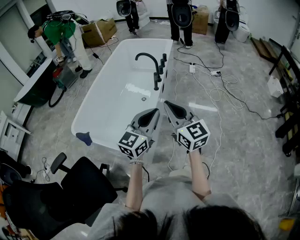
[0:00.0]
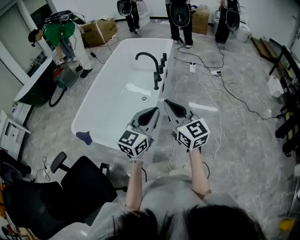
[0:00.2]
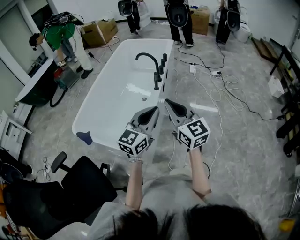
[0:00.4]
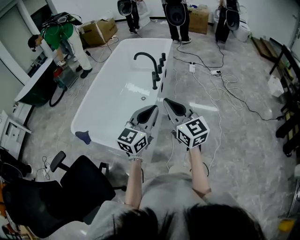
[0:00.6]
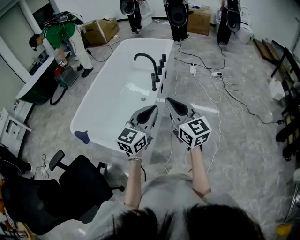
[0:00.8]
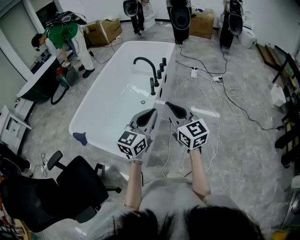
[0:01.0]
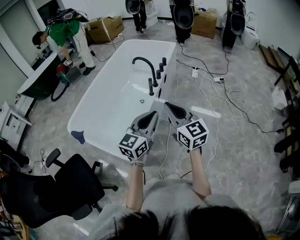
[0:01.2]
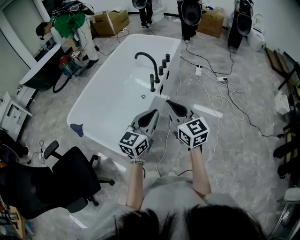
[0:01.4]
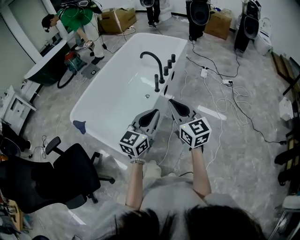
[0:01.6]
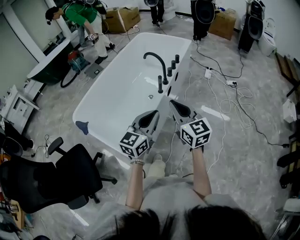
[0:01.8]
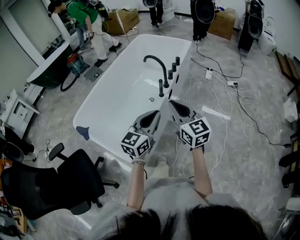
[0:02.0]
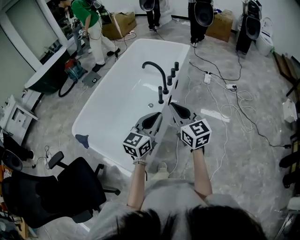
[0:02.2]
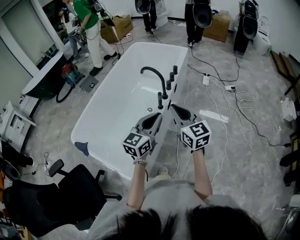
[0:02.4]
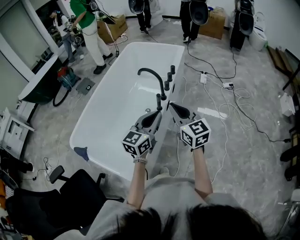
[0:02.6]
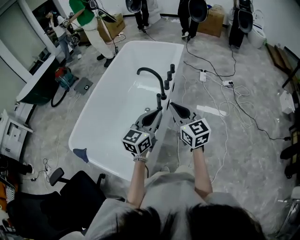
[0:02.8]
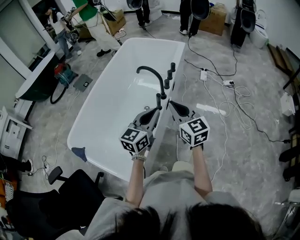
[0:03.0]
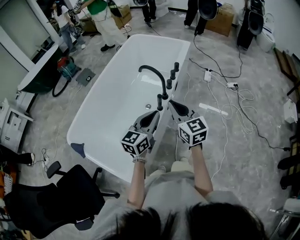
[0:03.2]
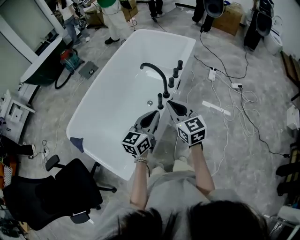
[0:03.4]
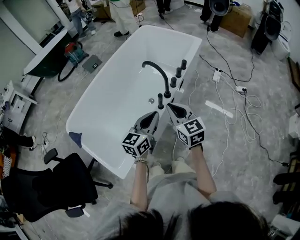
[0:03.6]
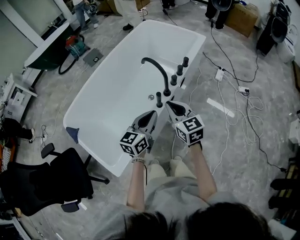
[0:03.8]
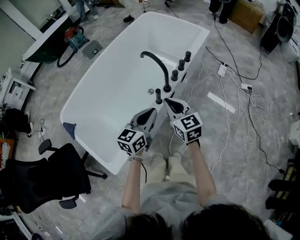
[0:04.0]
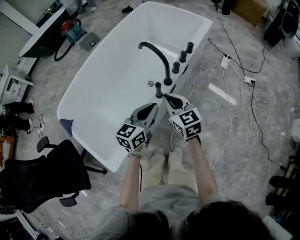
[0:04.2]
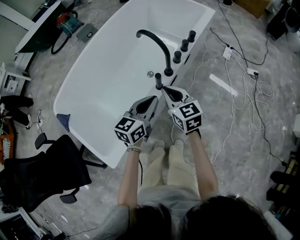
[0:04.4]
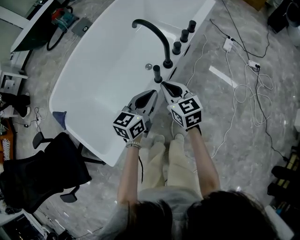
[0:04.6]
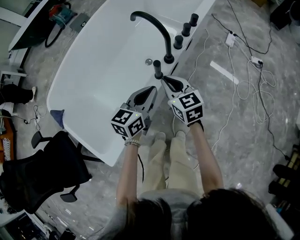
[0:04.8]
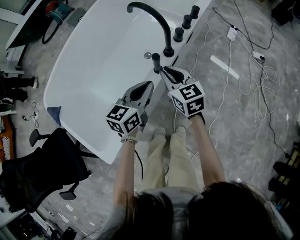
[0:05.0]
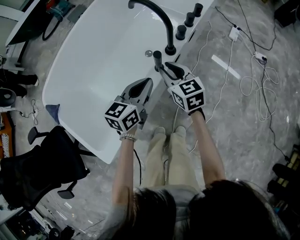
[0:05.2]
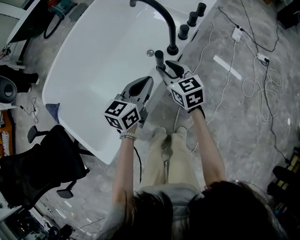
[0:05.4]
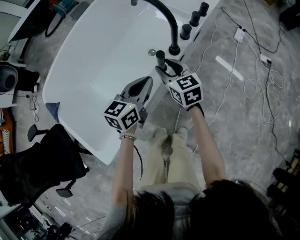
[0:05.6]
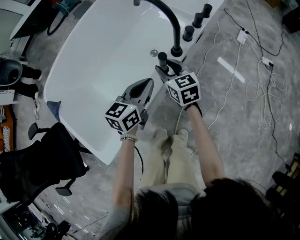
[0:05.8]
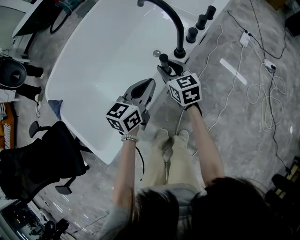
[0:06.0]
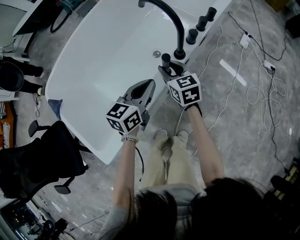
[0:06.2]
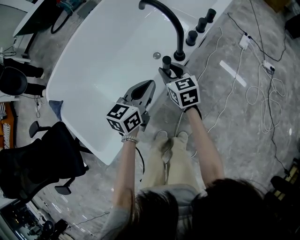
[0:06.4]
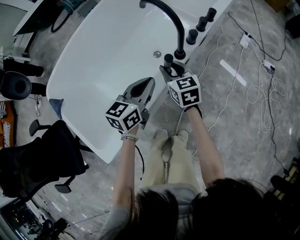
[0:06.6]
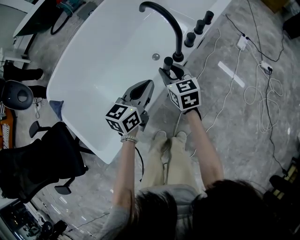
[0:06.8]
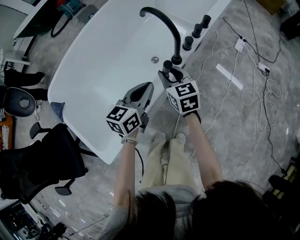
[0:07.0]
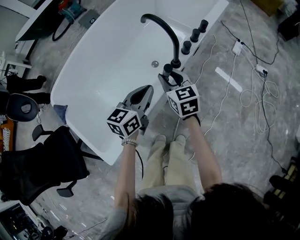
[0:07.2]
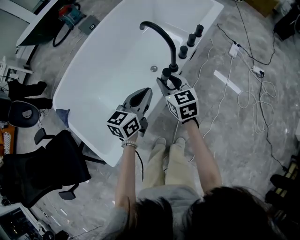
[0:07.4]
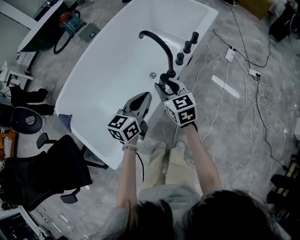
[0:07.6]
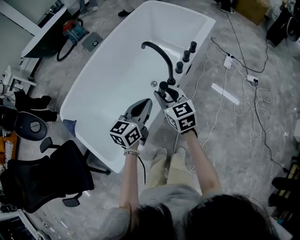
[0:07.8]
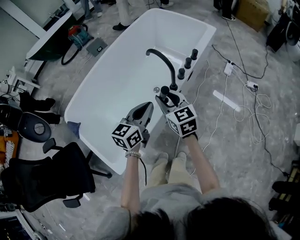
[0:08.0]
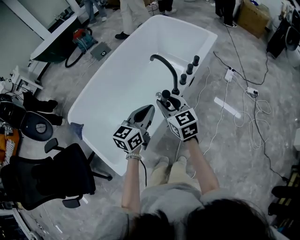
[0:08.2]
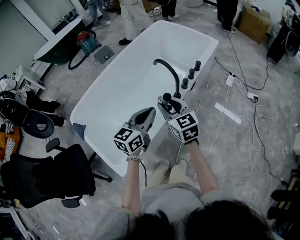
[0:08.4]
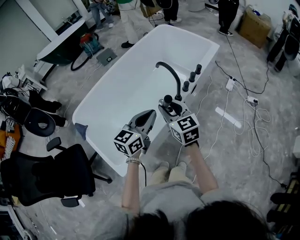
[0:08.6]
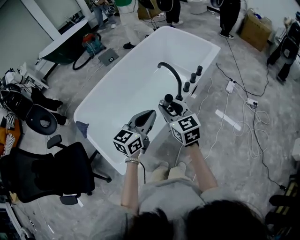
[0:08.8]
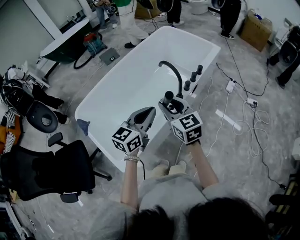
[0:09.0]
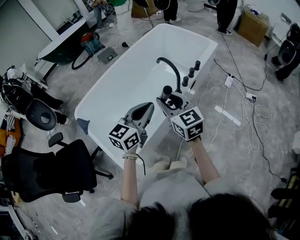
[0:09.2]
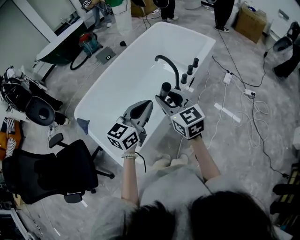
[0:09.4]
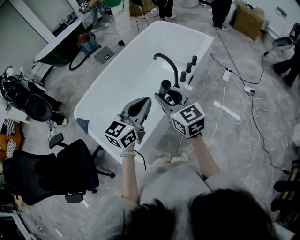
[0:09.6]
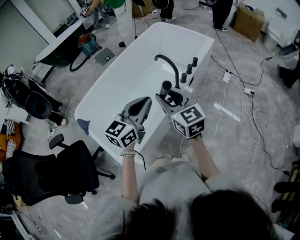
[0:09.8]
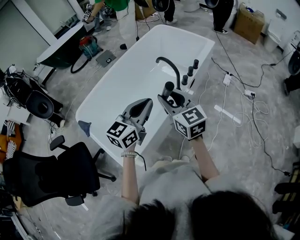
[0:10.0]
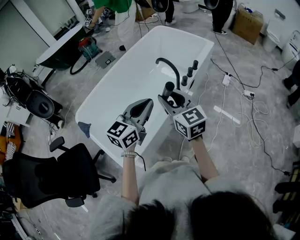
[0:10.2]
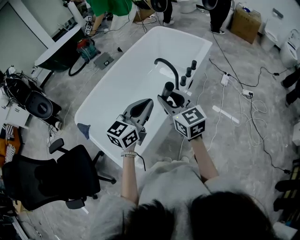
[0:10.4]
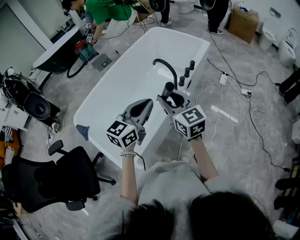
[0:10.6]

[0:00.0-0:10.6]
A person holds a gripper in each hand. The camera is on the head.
0:00.0 to 0:01.6: The grippers both shift to the right and forward by approximately 10 cm.
0:01.6 to 0:03.0: Both grippers move forward, roughly 20 cm.
0:03.0 to 0:04.6: Both grippers travel together downward and forward, some 25 cm. The left gripper rotates approximately 20 degrees; the right gripper swivels about 20 degrees.
0:04.6 to 0:06.0: The left gripper is displaced downward by about 5 cm. Meanwhile the right gripper is displaced downward and forward by approximately 15 cm, and opens its fingers.
0:06.0 to 0:07.6: Both grippers move upward, about 15 cm.
0:07.6 to 0:09.0: The grippers both shift upward and backward by about 20 cm.
0:09.0 to 0:10.6: The grippers make only small movements.

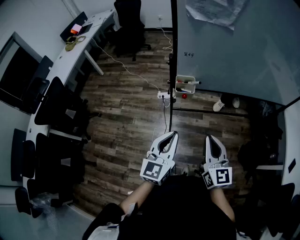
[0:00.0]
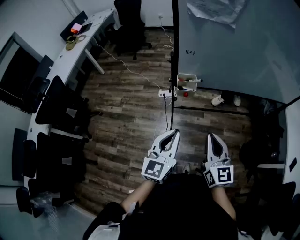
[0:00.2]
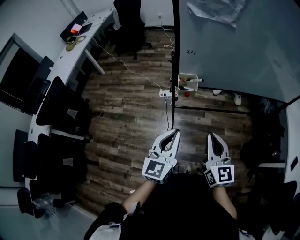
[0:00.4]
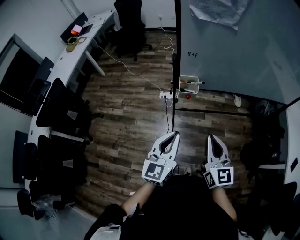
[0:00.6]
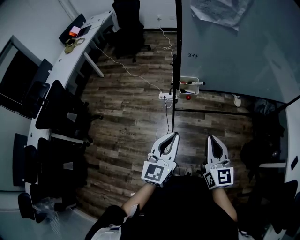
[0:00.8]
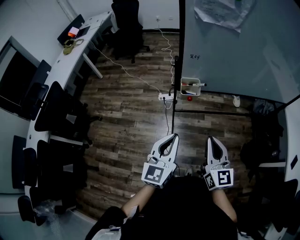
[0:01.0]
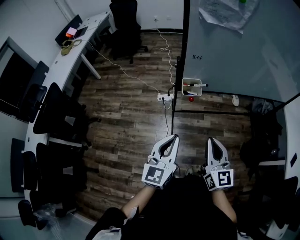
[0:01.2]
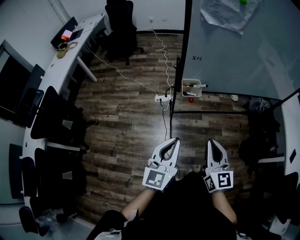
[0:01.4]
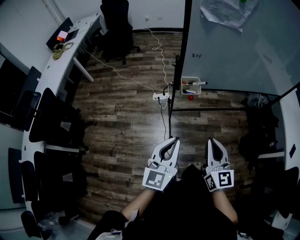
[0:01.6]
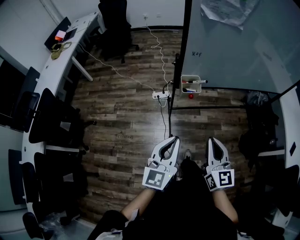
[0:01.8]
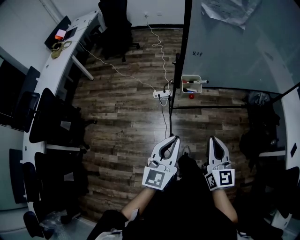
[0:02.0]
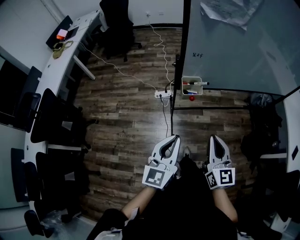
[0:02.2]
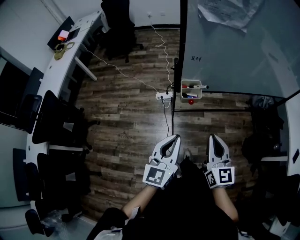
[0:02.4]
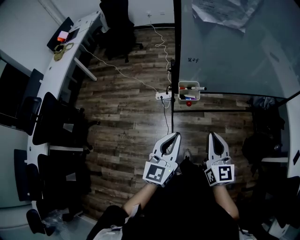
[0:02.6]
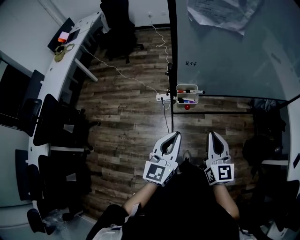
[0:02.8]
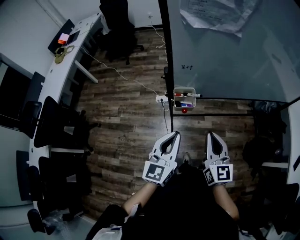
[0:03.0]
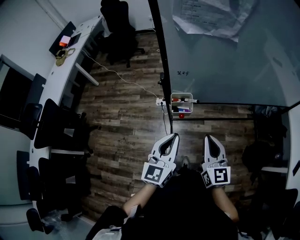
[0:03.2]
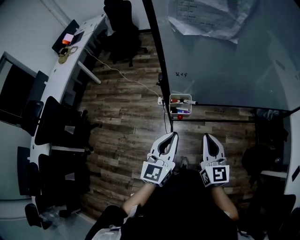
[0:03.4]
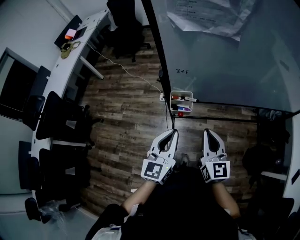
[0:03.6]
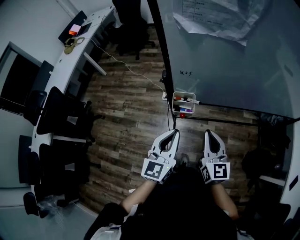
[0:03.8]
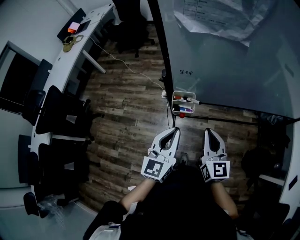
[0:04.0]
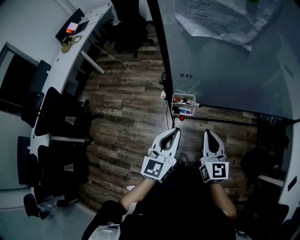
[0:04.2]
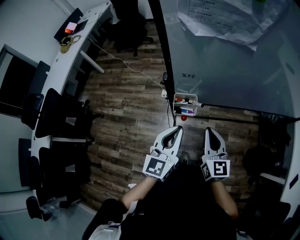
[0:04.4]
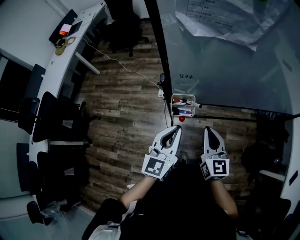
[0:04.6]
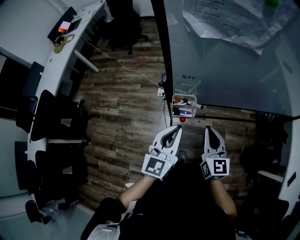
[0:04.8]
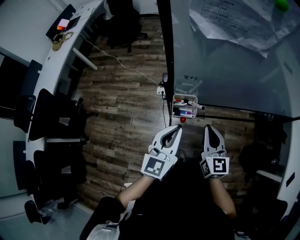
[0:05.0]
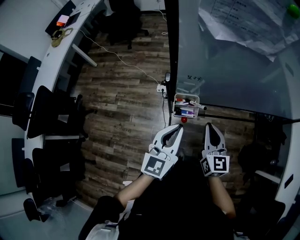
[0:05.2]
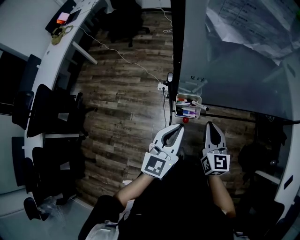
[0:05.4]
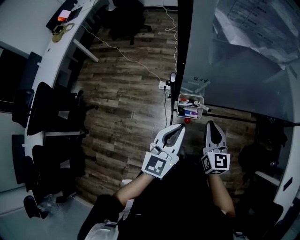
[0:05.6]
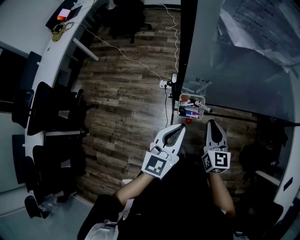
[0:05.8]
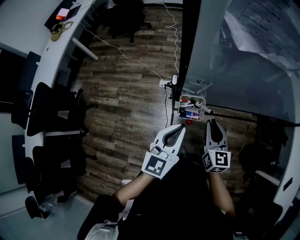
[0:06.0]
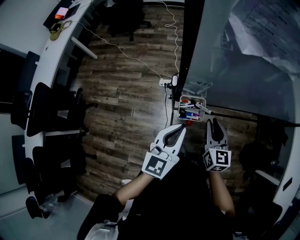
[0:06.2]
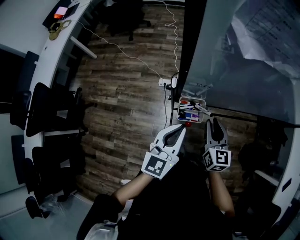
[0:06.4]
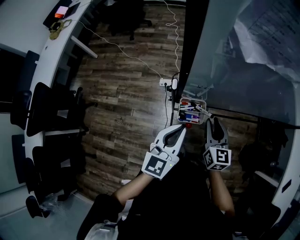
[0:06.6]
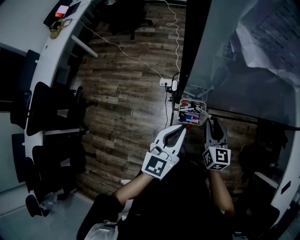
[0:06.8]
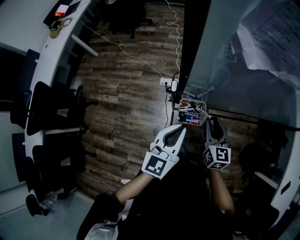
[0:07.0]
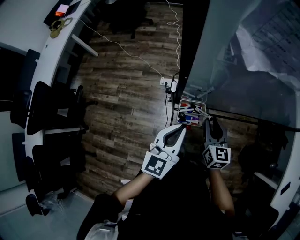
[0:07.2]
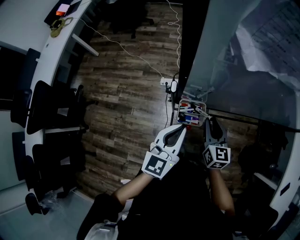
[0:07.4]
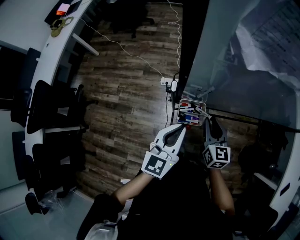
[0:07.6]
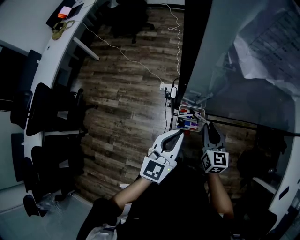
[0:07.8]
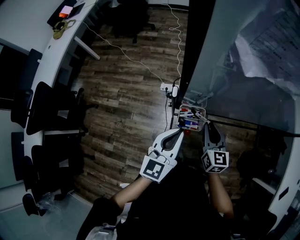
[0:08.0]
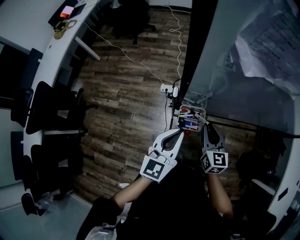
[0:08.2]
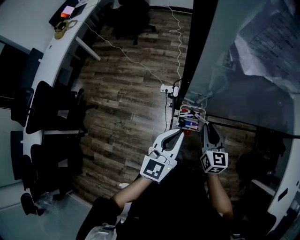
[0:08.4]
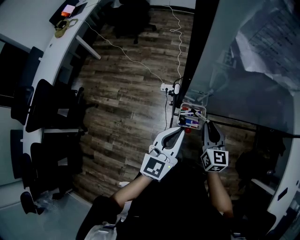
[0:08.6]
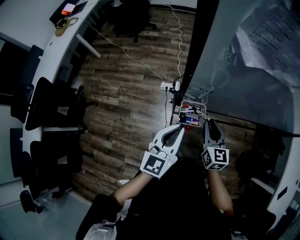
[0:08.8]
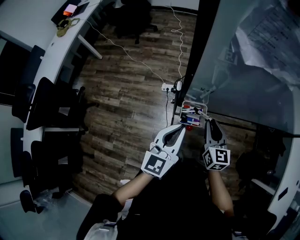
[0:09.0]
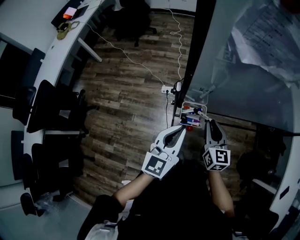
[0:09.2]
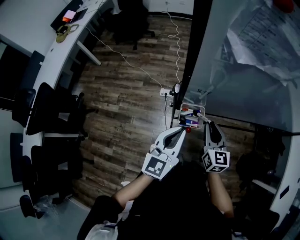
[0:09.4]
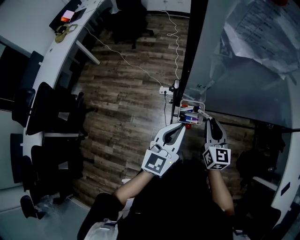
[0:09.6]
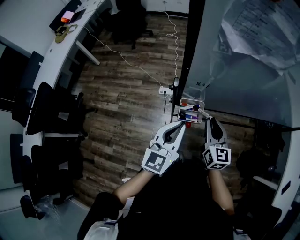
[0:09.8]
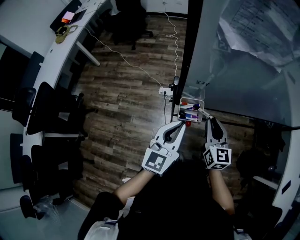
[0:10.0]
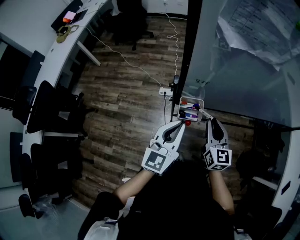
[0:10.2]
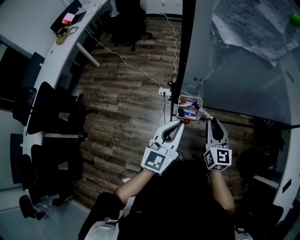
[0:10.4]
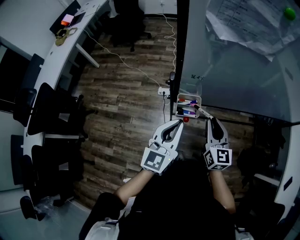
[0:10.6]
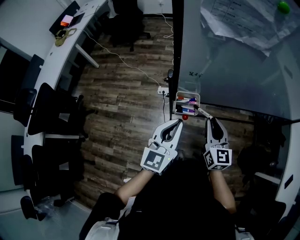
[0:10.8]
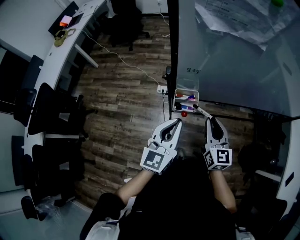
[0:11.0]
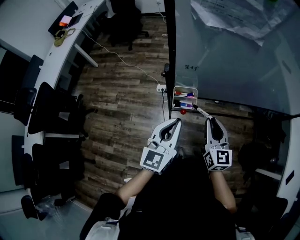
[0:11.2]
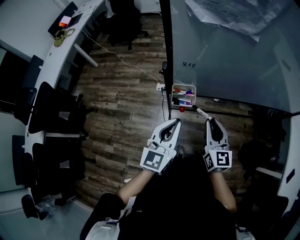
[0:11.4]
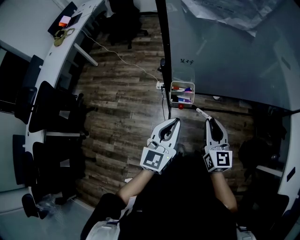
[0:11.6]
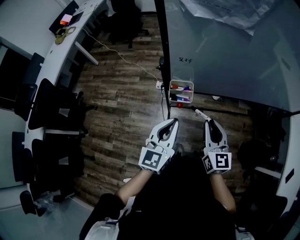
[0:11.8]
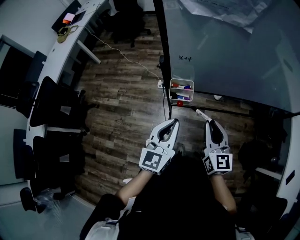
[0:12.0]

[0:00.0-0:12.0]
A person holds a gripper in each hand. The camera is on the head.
0:00.0 to 0:01.6: The grippers both shift to the left by about 5 cm.
0:01.6 to 0:03.0: The left gripper is displaced forward and to the right by some 15 cm. The right gripper heads forward, covering approximately 15 cm.
0:03.0 to 0:04.4: The grippers both shift forward by roughly 10 cm.
0:04.4 to 0:06.0: The left gripper moves roughly 5 cm. Meanwhile the right gripper is displaced forward and downward by approximately 10 cm.
0:06.0 to 0:07.6: The right gripper moves about 5 cm.
0:07.6 to 0:09.0: The grippers make only small movements.
0:09.0 to 0:10.4: The right gripper changes place by roughly 5 cm.
0:10.4 to 0:12.0: The two grippers go some 10 cm backward.

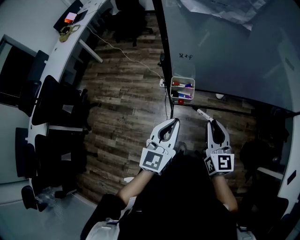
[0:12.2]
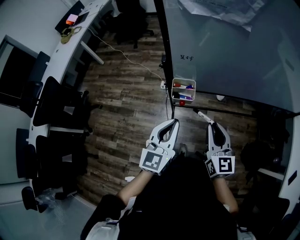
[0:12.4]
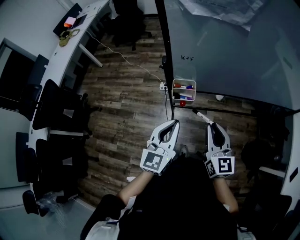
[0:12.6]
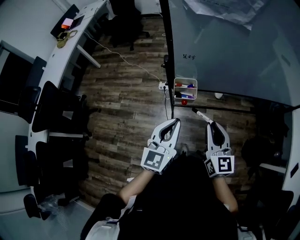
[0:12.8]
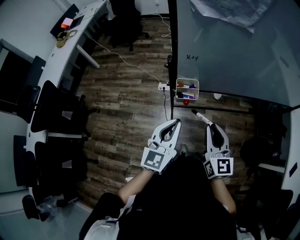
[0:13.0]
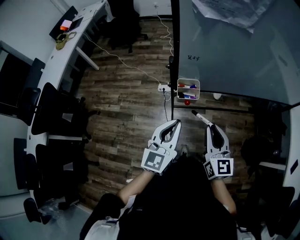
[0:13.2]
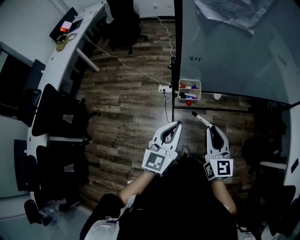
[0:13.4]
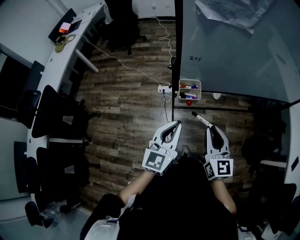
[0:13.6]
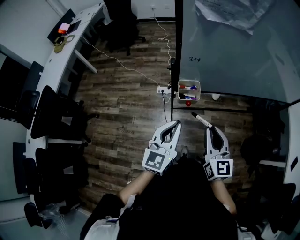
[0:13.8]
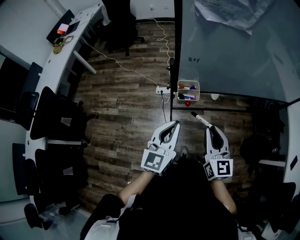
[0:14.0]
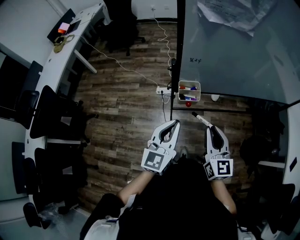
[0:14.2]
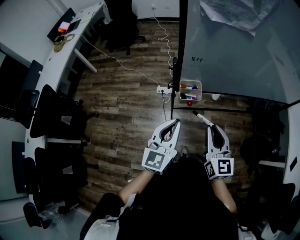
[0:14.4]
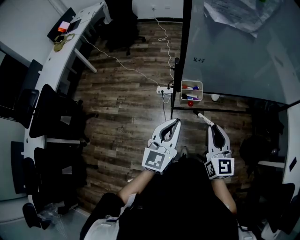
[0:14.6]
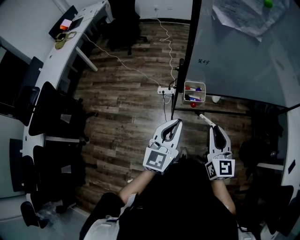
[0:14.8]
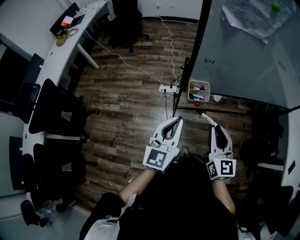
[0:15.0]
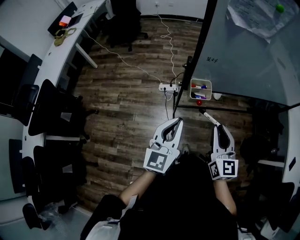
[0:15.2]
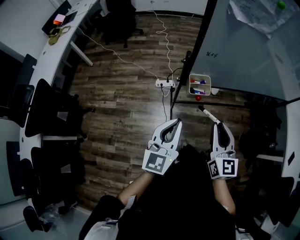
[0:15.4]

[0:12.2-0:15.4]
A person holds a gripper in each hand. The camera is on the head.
0:12.2 to 0:13.8: The left gripper is displaced to the left by approximately 5 cm. Meanwhile the right gripper travels to the left and backward by roughly 10 cm.
0:13.8 to 0:15.4: The left gripper is displaced to the left by roughly 5 cm.
